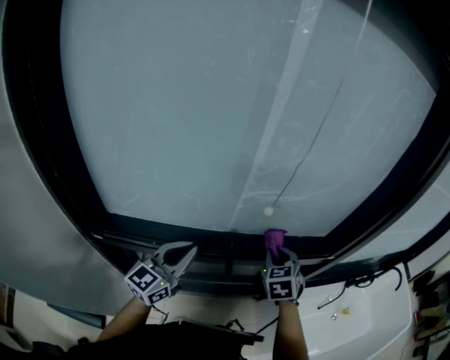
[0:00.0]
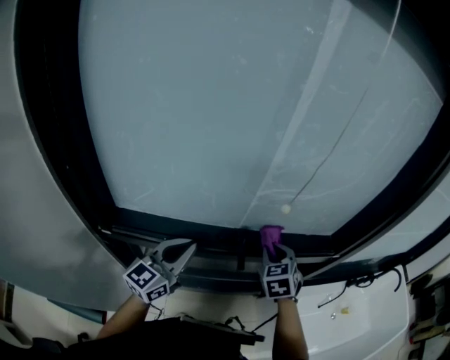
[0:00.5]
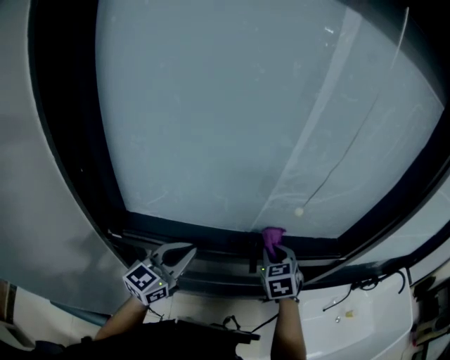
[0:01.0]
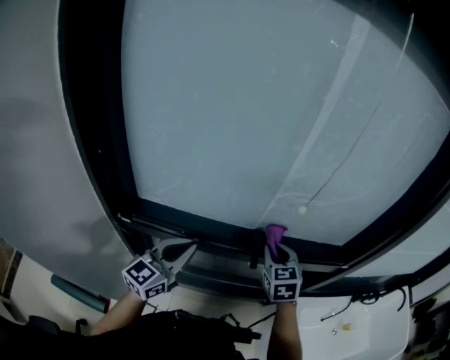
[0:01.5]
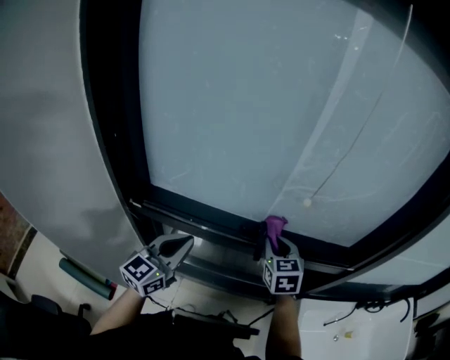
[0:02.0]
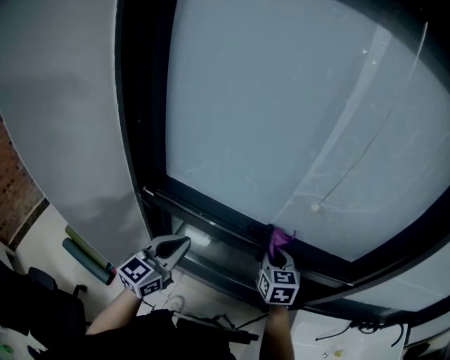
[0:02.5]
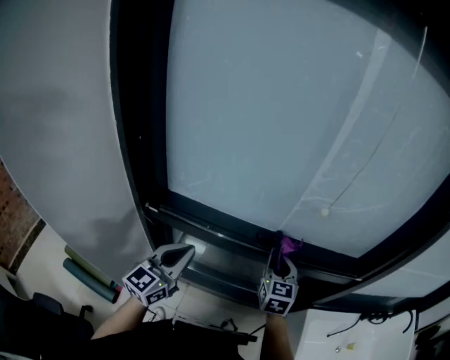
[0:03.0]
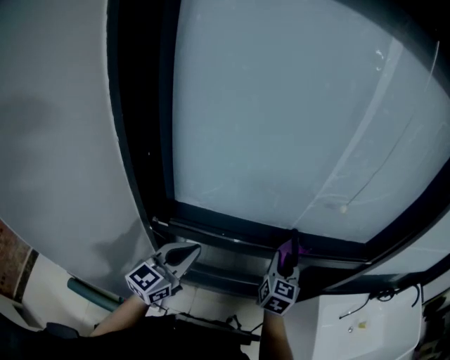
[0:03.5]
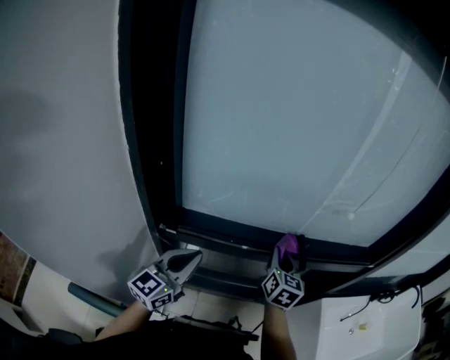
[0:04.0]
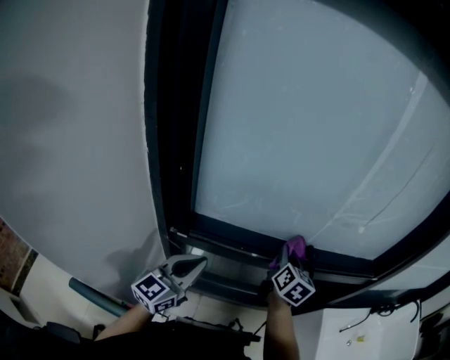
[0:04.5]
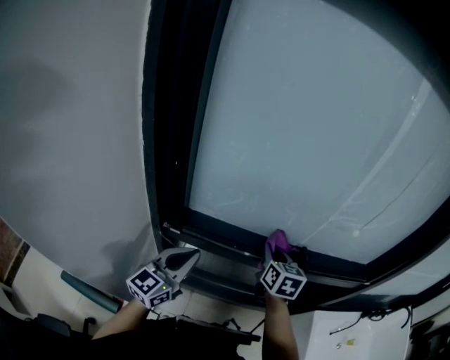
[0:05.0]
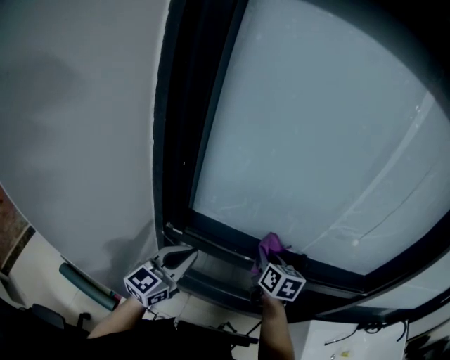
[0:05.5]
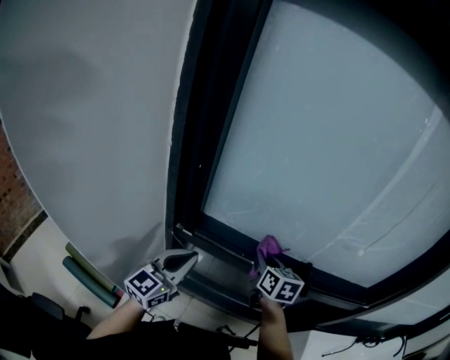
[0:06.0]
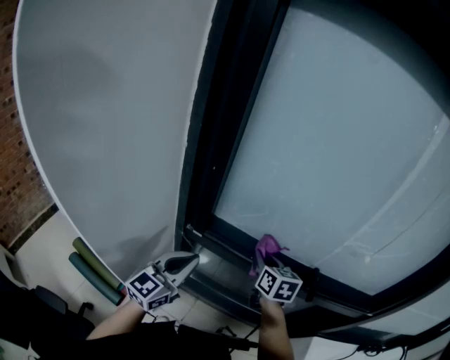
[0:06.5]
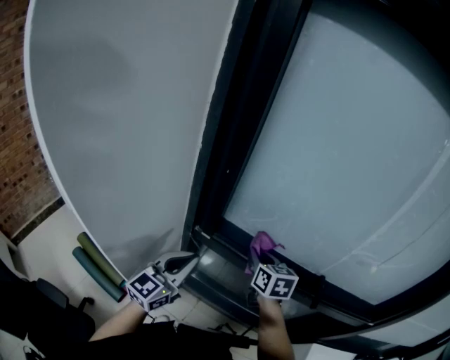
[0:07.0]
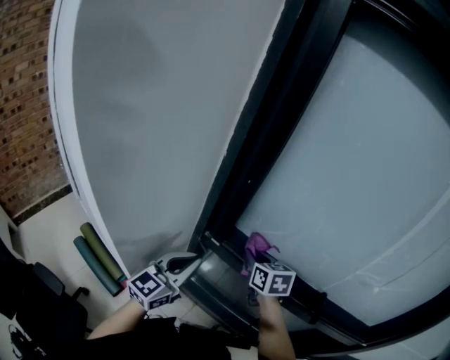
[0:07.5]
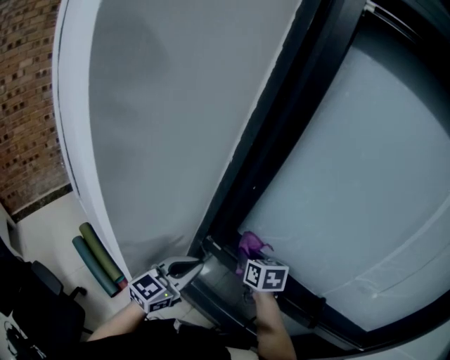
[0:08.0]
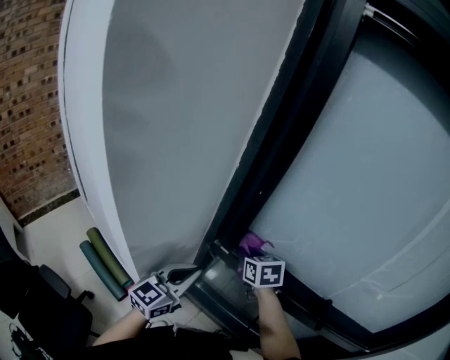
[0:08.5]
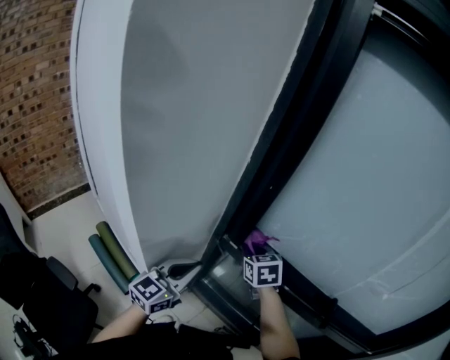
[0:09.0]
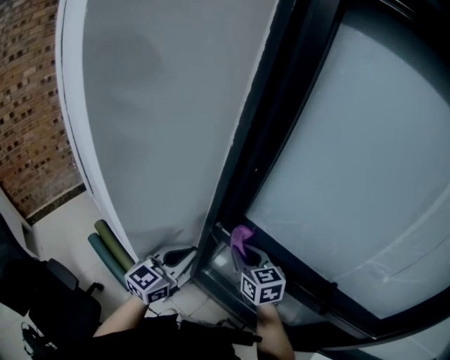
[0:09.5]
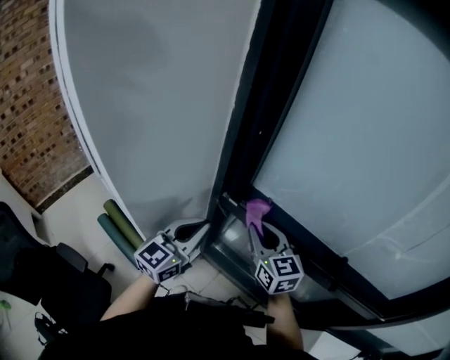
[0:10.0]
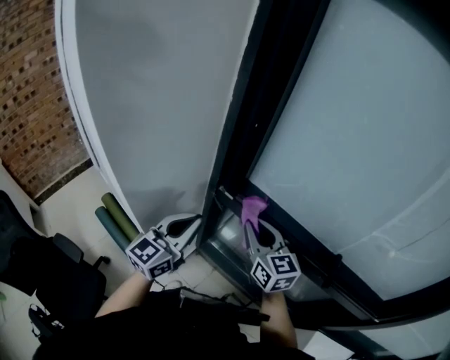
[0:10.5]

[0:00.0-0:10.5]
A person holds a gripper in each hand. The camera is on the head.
0:00.0 to 0:02.0: The right gripper is displaced to the left by about 10 cm, and turns by about 20 degrees, while the left gripper travels backward and to the left by some 10 cm.
0:02.0 to 0:04.0: The grippers both shift to the left by approximately 10 cm. The right gripper changes its angle by roughly 30 degrees.
0:04.0 to 0:06.5: The left gripper is displaced to the left by some 5 cm; the right gripper goes roughly 15 cm to the left, and changes its angle by some 30 degrees.
0:06.5 to 0:08.5: The left gripper shifts some 5 cm to the left, while the right gripper moves to the left, approximately 15 cm, and swivels approximately 30 degrees.
0:08.5 to 0:10.5: The right gripper is displaced backward by some 10 cm, and swivels about 30 degrees.

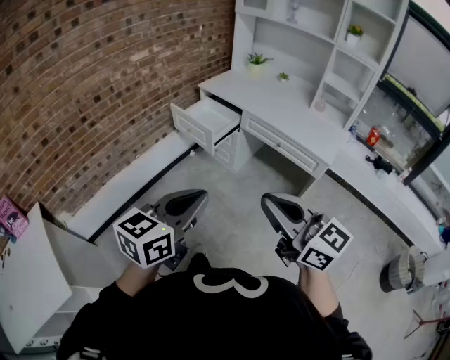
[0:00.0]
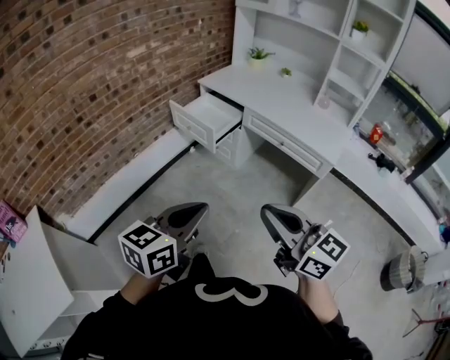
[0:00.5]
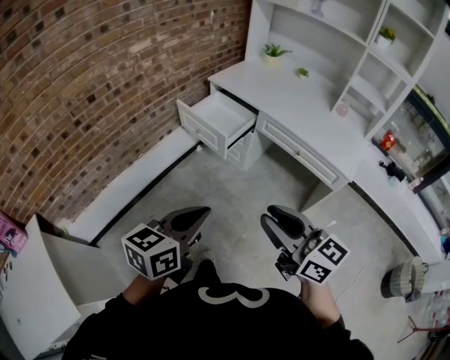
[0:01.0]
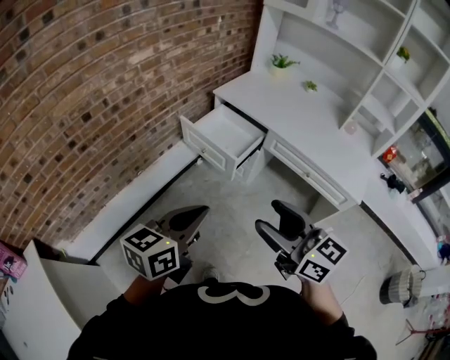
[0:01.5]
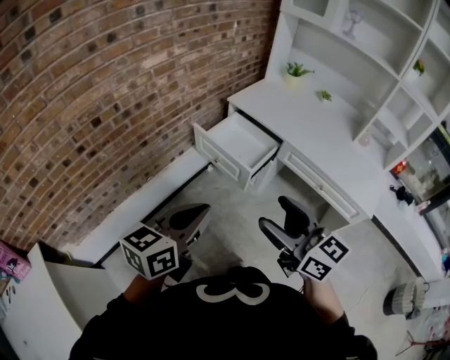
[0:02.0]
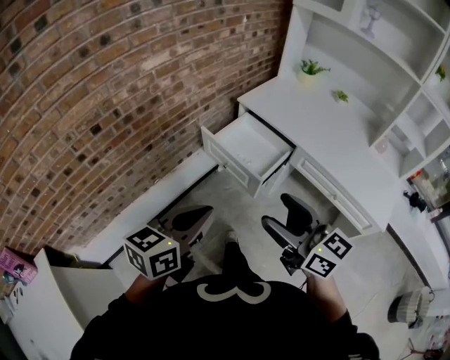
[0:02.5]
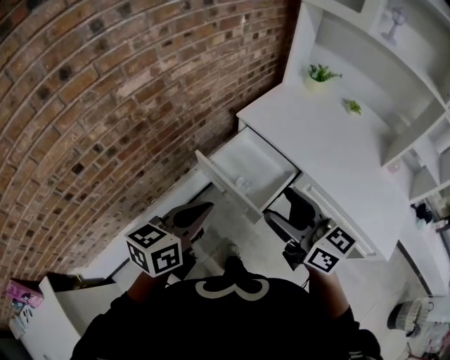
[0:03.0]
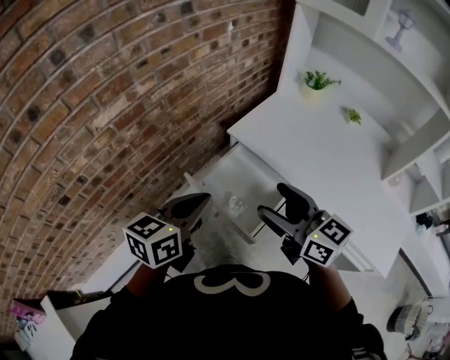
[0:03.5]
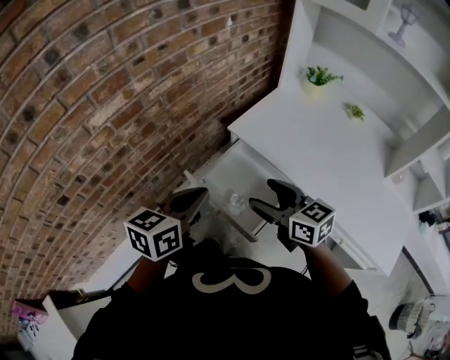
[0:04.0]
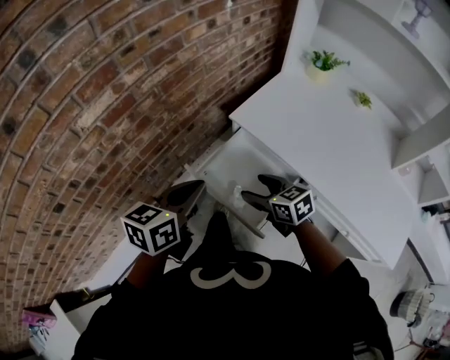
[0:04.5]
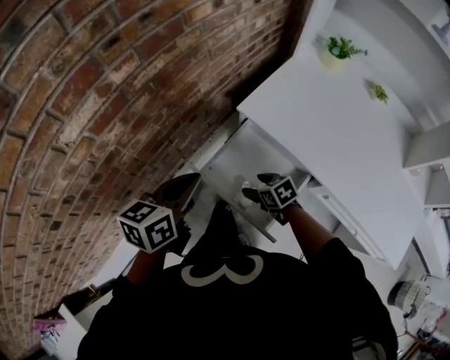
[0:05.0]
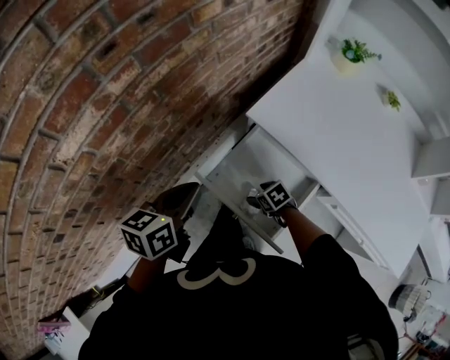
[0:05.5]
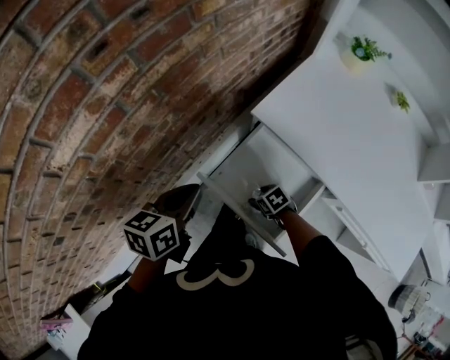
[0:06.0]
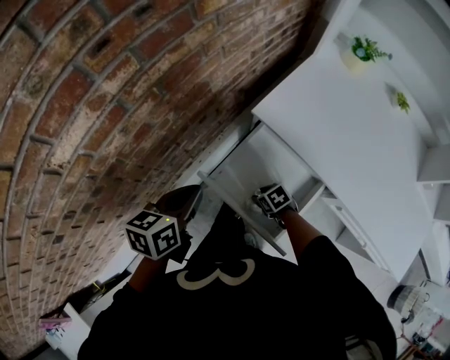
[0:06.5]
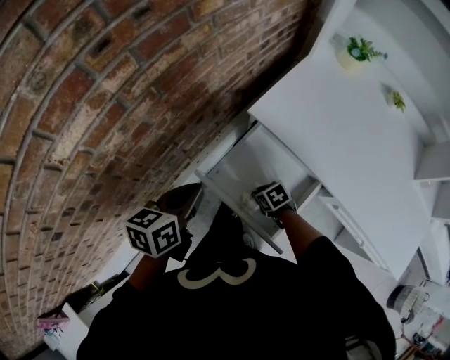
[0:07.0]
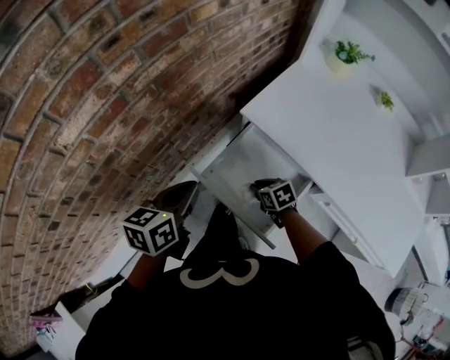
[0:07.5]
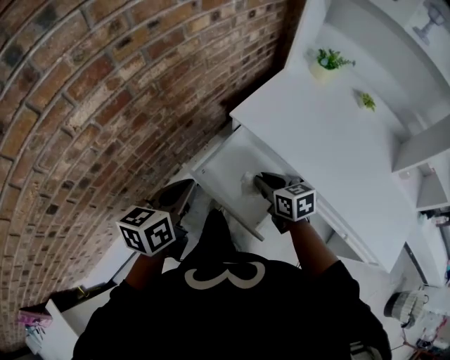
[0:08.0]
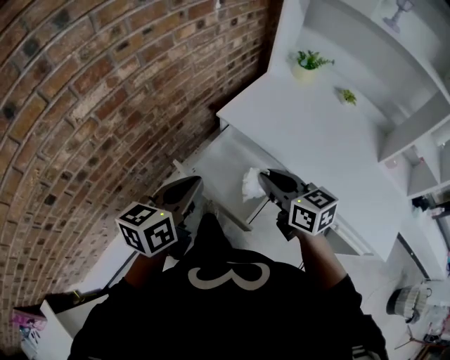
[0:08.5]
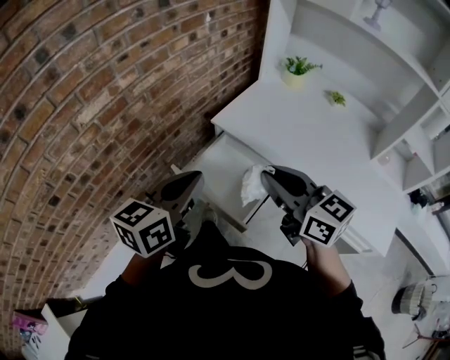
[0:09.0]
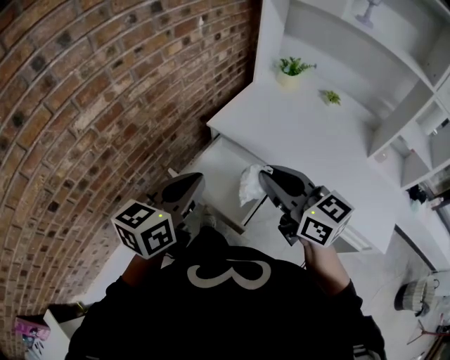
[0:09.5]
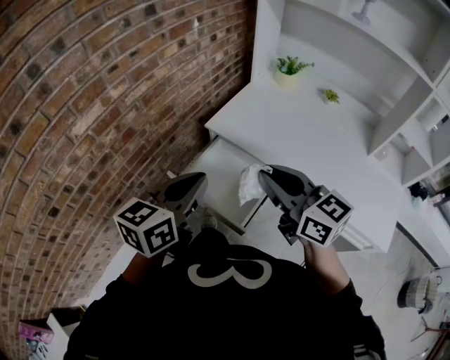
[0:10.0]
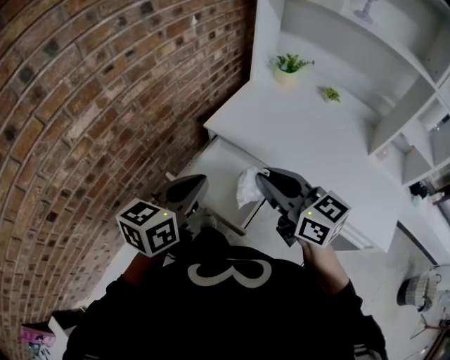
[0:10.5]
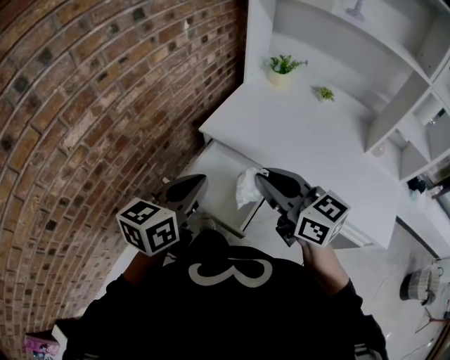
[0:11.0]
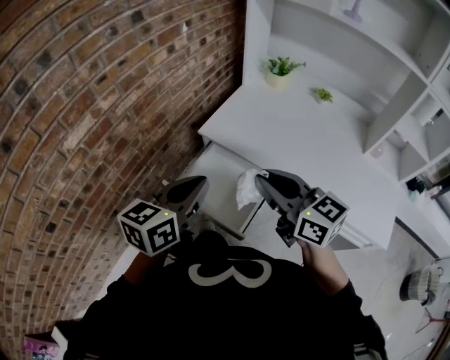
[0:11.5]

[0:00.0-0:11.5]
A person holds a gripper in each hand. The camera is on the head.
0:00.0 to 0:02.0: Both grippers travel together forward and to the left, approximately 30 cm. The right gripper opens.
0:02.0 to 0:04.0: The grippers both shift forward by approximately 40 cm.
0:04.0 to 0:06.0: The right gripper shifts roughly 40 cm downward, and points its fingers some 50 degrees further downward. The left gripper moves forward, downward and to the left, approximately 20 cm.
0:06.0 to 0:07.5: The right gripper is displaced upward by some 10 cm, and closes.
0:07.5 to 0:09.5: The right gripper moves upward, some 40 cm, and tilts its fingers some 50 degrees upward, while the left gripper moves upward, backward and to the right, about 20 cm, and turns by some 20 degrees.
0:09.5 to 0:11.5: The grippers stay close to where they were, moving slightly.

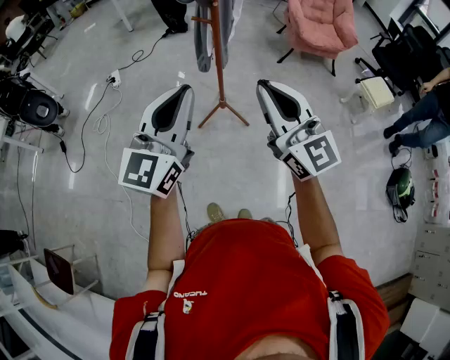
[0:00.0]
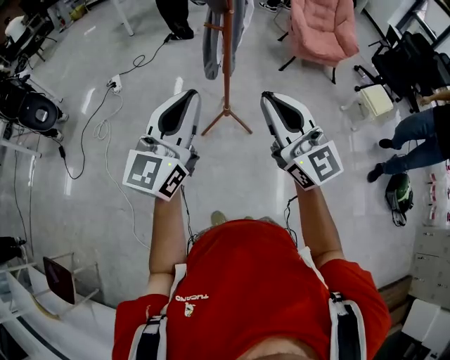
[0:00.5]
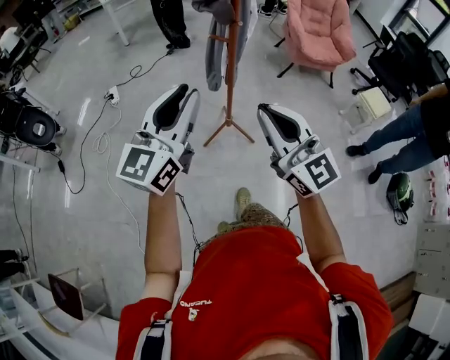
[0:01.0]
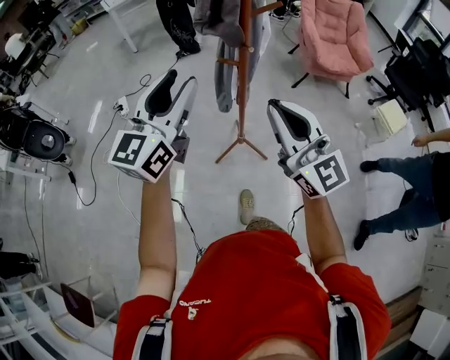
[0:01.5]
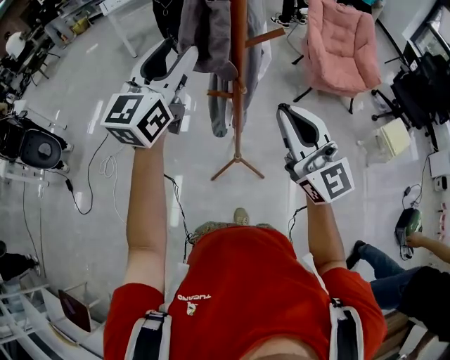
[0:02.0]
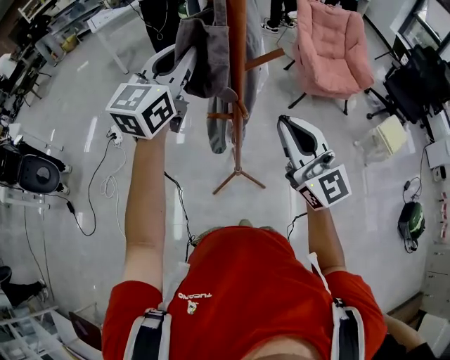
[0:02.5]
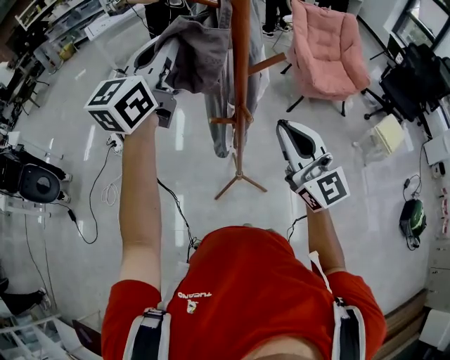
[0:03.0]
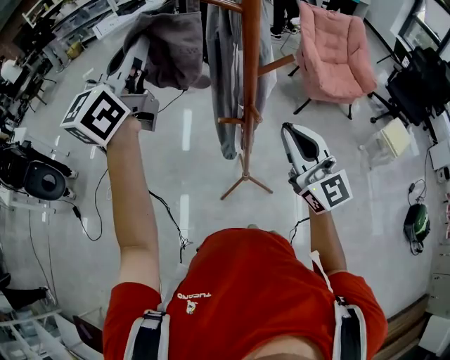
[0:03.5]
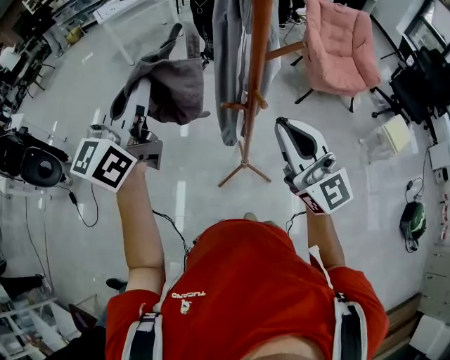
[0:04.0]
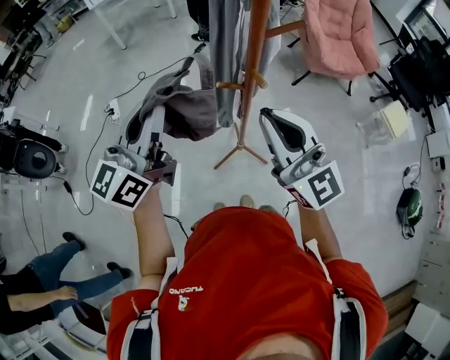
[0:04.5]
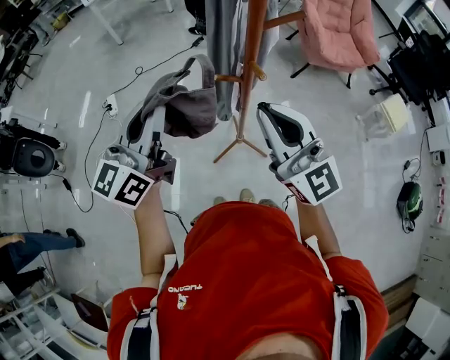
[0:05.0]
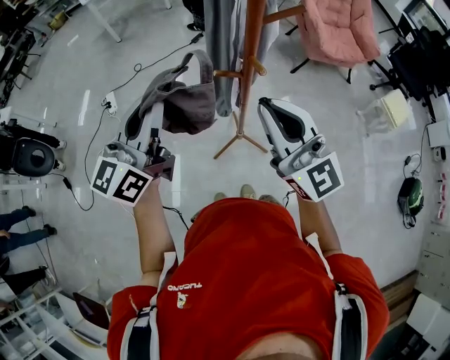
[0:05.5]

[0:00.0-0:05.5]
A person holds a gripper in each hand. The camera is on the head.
0:00.0 to 0:02.0: The grippers both shift forward by approximately 35 cm. The left gripper opens.
0:02.0 to 0:03.5: The left gripper travels upward and to the left by approximately 15 cm, and closes its fingers.
0:03.5 to 0:05.5: The right gripper shifts some 5 cm to the left; the left gripper is displaced downward and backward by some 20 cm.
